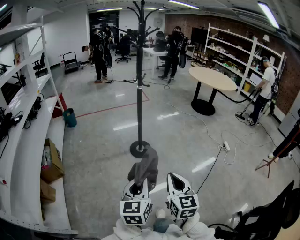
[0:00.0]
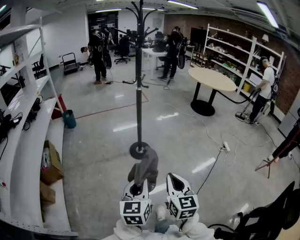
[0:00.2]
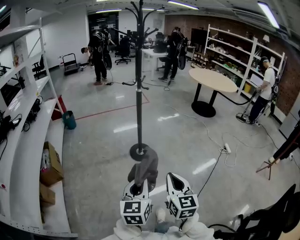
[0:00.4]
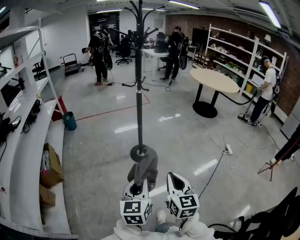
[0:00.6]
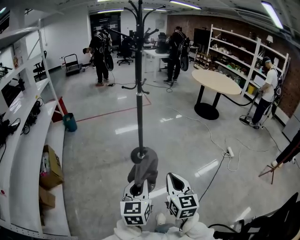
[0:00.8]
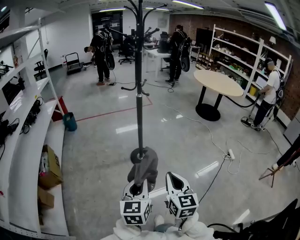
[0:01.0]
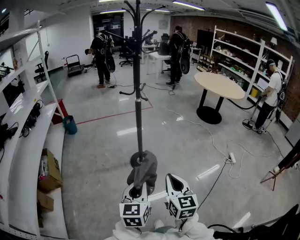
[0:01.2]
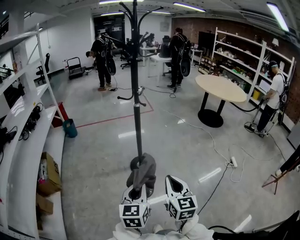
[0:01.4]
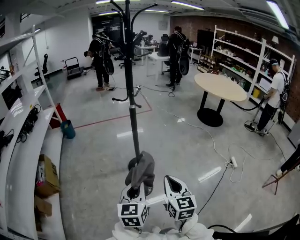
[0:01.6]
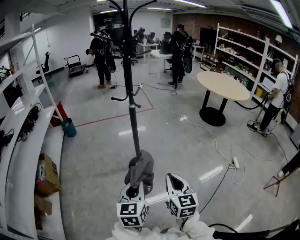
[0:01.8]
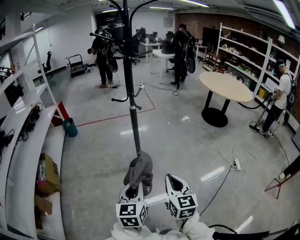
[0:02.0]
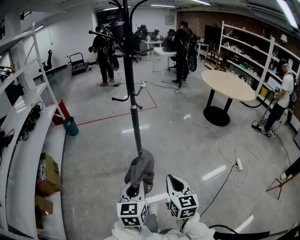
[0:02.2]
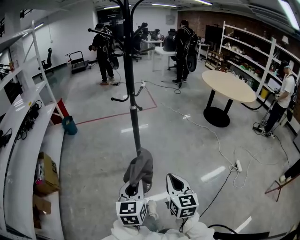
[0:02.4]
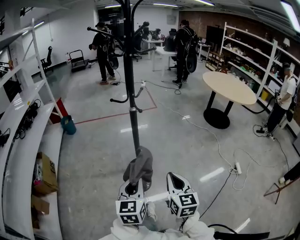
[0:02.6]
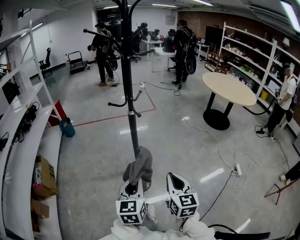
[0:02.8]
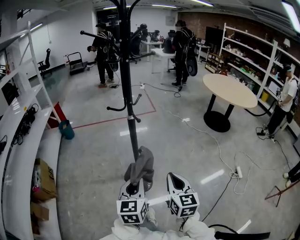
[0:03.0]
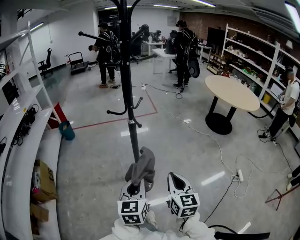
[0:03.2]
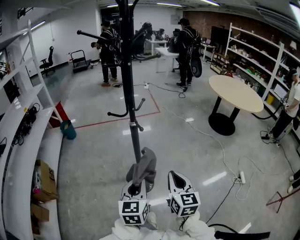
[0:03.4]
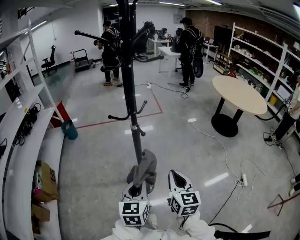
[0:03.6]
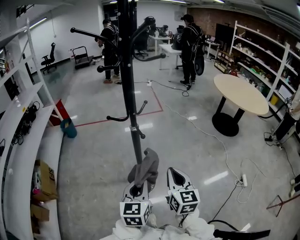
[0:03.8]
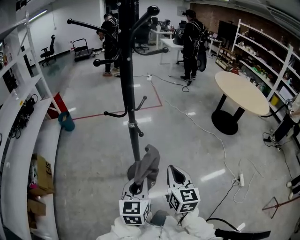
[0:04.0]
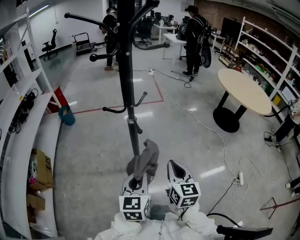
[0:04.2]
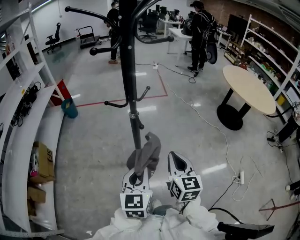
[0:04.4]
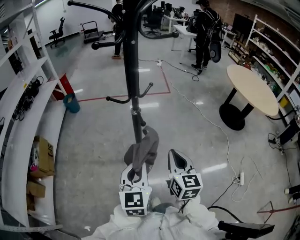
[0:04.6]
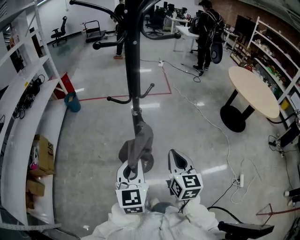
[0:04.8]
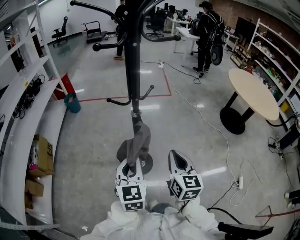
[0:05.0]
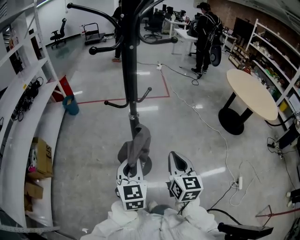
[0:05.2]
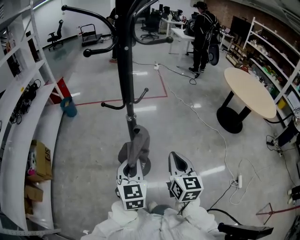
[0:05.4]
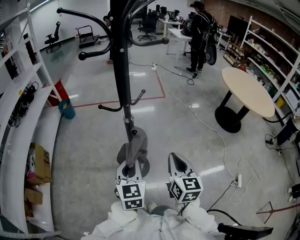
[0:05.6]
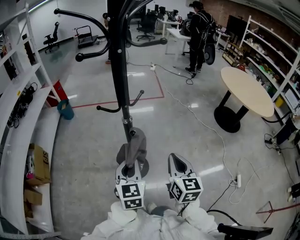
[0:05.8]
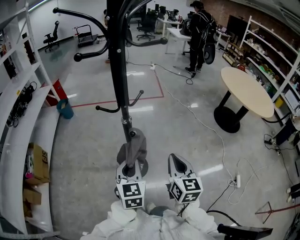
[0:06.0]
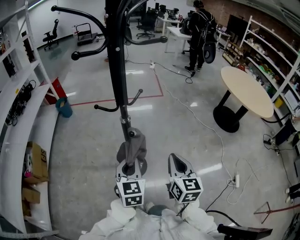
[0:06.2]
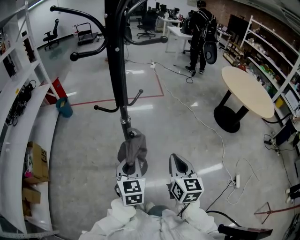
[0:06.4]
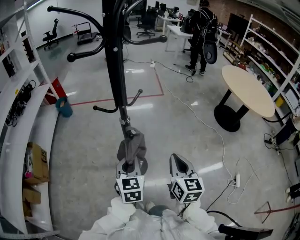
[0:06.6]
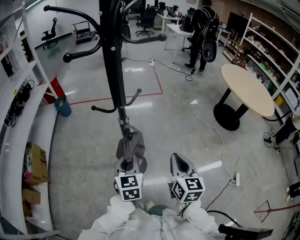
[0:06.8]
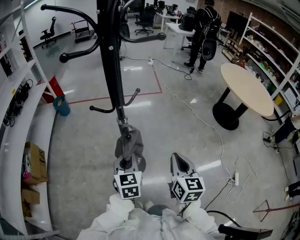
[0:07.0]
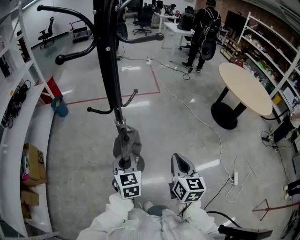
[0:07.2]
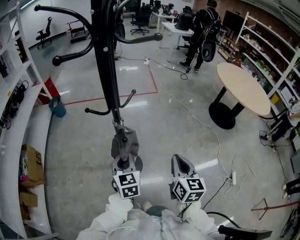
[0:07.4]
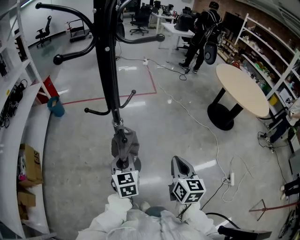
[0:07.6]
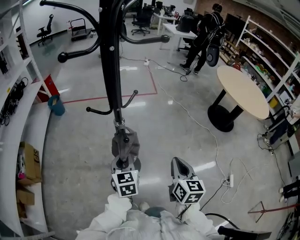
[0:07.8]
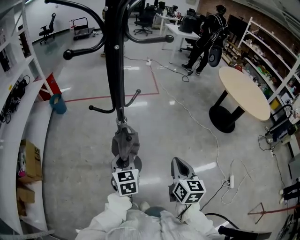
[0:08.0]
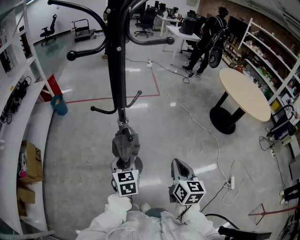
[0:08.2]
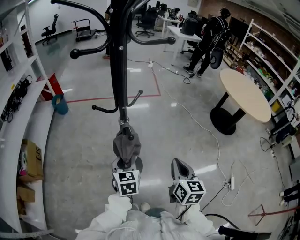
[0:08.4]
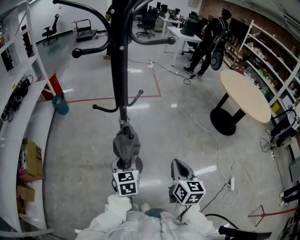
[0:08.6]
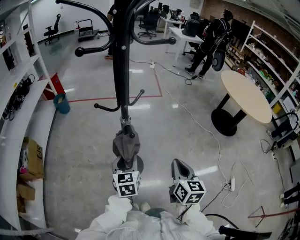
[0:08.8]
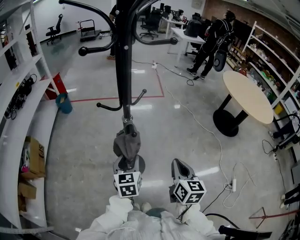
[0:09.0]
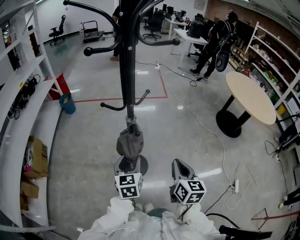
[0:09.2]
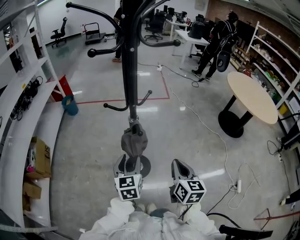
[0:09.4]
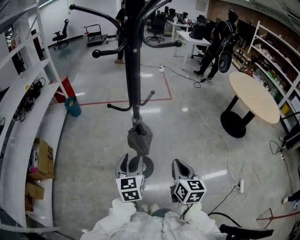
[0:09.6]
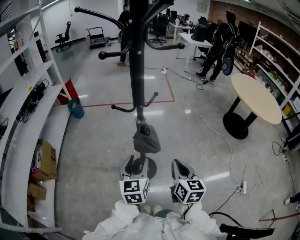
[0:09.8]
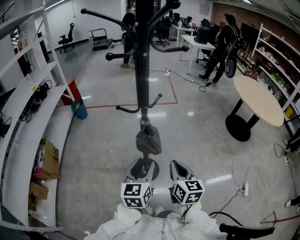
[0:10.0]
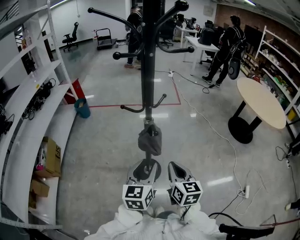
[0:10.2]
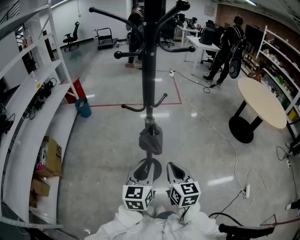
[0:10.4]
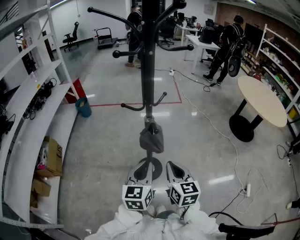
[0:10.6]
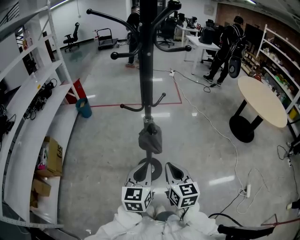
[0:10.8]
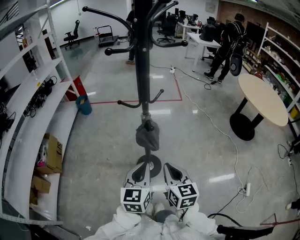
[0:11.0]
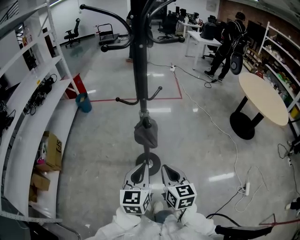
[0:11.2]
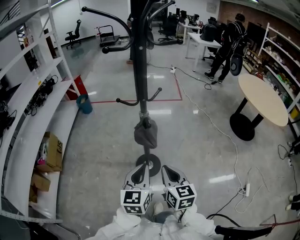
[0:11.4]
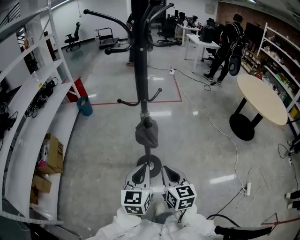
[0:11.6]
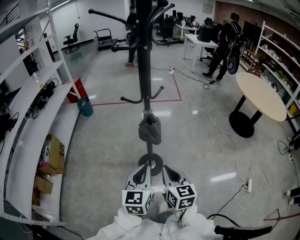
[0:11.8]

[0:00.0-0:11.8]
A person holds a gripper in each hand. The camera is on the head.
0.0 to 1.4 s: Both grippers move forward, about 15 cm.
1.4 to 3.0 s: The grippers both shift forward by approximately 20 cm.
3.0 to 4.4 s: The two grippers go roughly 15 cm forward.
4.4 to 6.0 s: The left gripper shifts roughly 5 cm forward.
6.0 to 7.4 s: The left gripper travels forward and downward by about 10 cm. Meanwhile the right gripper moves approximately 5 cm.
7.4 to 8.8 s: The left gripper opens.
8.8 to 10.4 s: The left gripper goes approximately 10 cm upward and backward; the right gripper moves to the left, about 10 cm.
10.4 to 11.8 s: Both grippers travel together backward, roughly 5 cm.

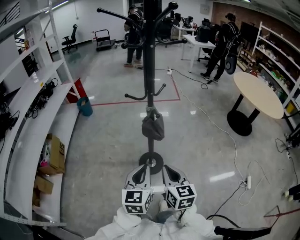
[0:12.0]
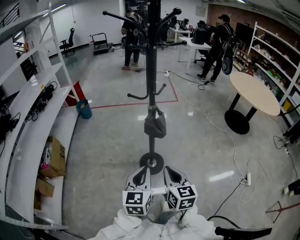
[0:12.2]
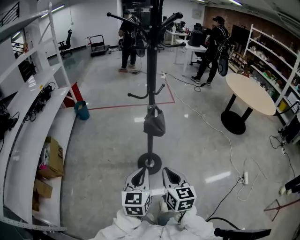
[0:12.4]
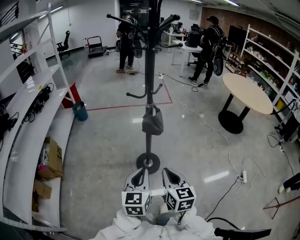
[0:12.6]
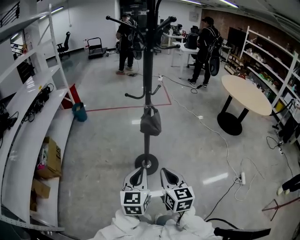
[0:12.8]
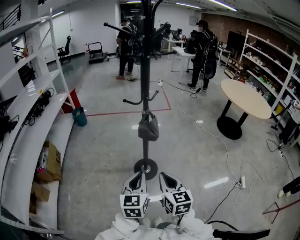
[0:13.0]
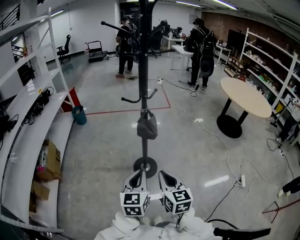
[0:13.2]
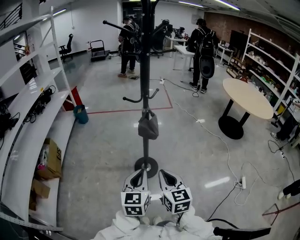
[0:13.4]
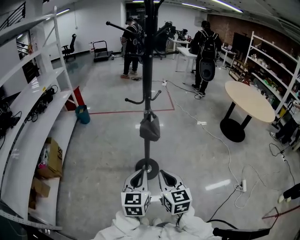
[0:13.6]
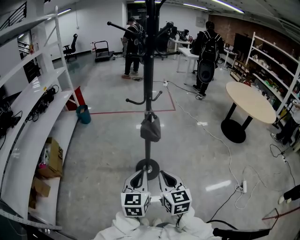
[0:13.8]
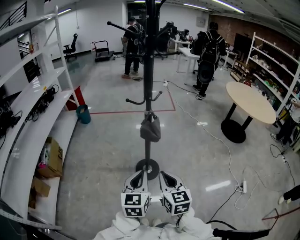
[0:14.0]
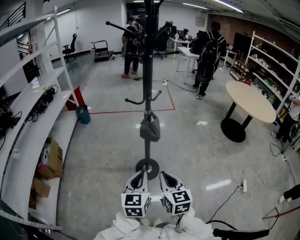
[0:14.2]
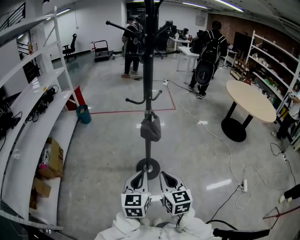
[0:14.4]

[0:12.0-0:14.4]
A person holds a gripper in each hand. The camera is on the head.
12.0 to 13.2 s: The two grippers go about 5 cm backward.
13.2 to 14.4 s: The grippers move only a little.

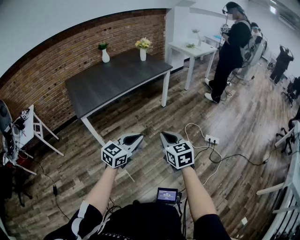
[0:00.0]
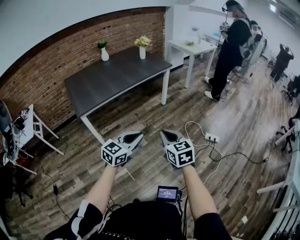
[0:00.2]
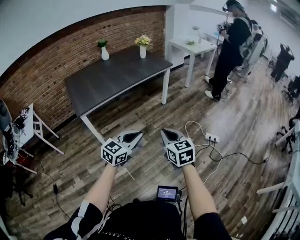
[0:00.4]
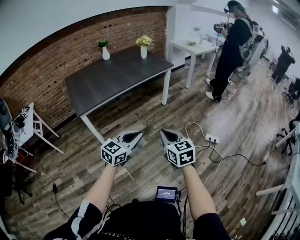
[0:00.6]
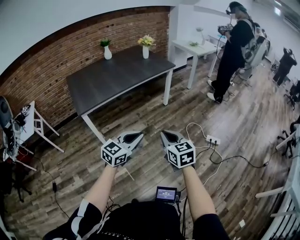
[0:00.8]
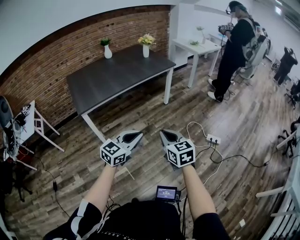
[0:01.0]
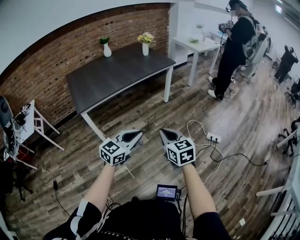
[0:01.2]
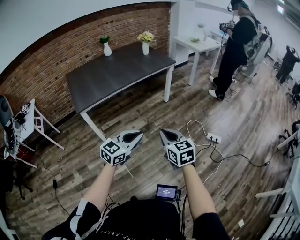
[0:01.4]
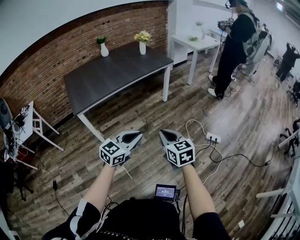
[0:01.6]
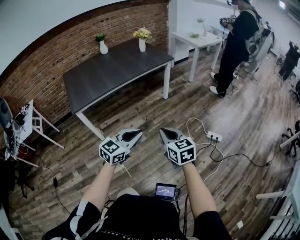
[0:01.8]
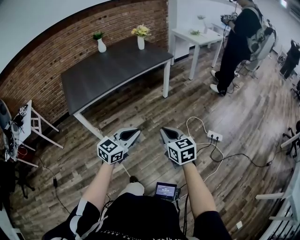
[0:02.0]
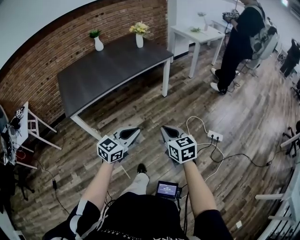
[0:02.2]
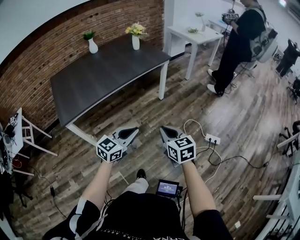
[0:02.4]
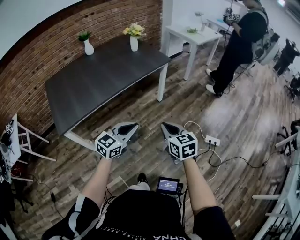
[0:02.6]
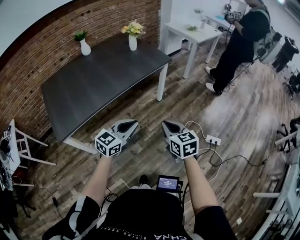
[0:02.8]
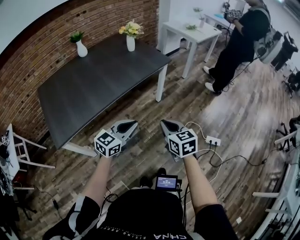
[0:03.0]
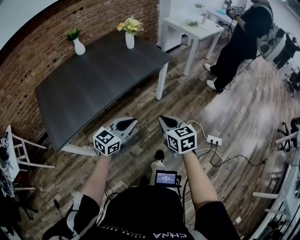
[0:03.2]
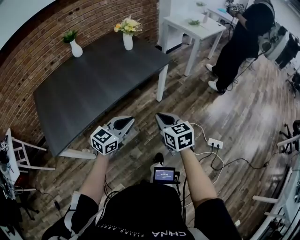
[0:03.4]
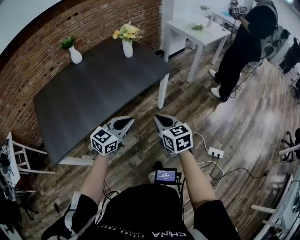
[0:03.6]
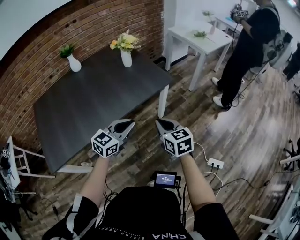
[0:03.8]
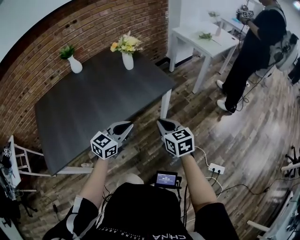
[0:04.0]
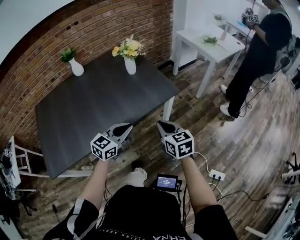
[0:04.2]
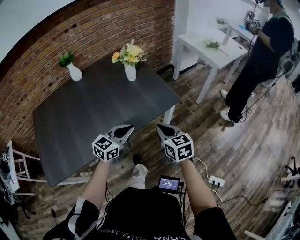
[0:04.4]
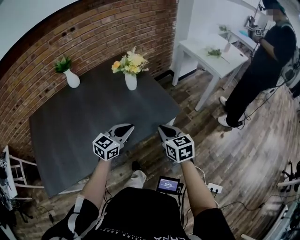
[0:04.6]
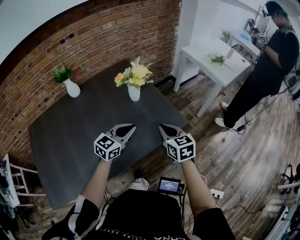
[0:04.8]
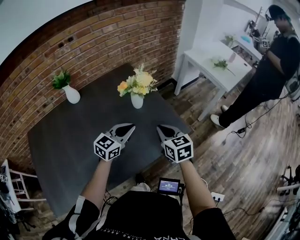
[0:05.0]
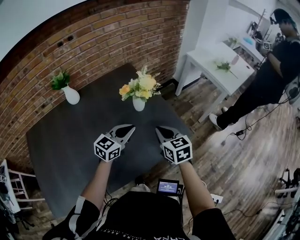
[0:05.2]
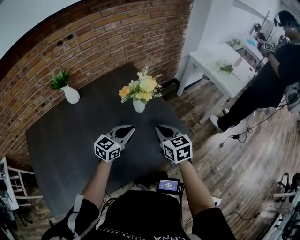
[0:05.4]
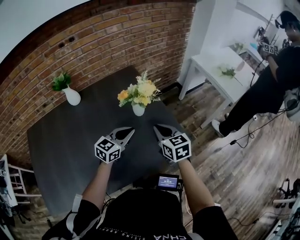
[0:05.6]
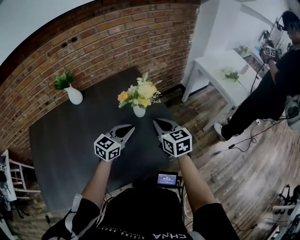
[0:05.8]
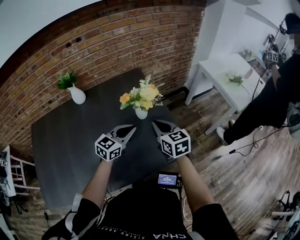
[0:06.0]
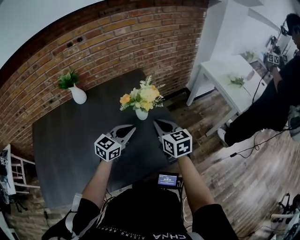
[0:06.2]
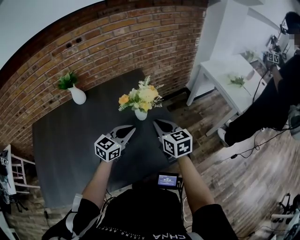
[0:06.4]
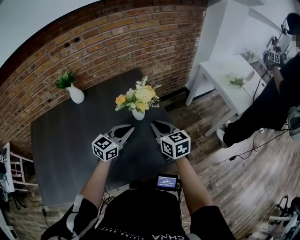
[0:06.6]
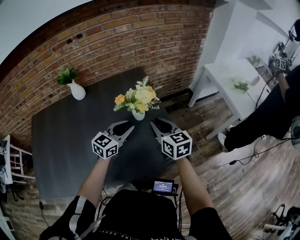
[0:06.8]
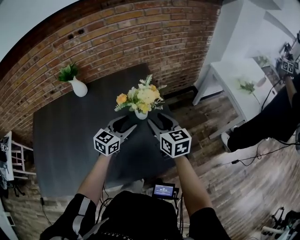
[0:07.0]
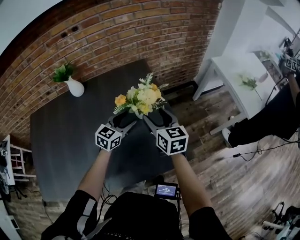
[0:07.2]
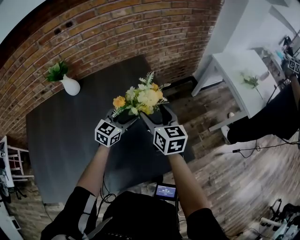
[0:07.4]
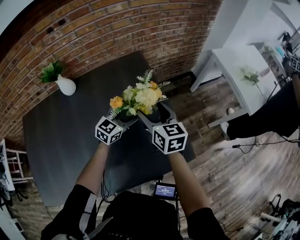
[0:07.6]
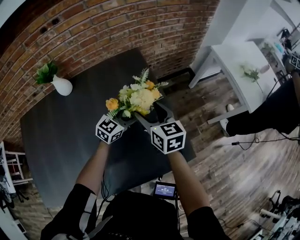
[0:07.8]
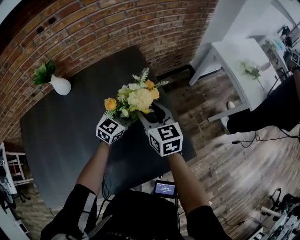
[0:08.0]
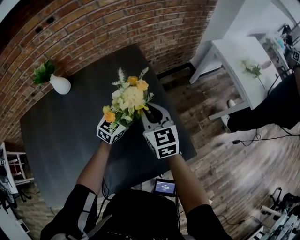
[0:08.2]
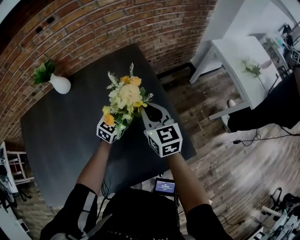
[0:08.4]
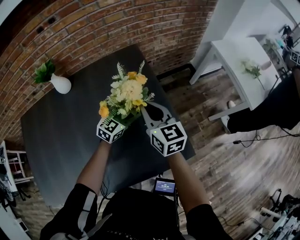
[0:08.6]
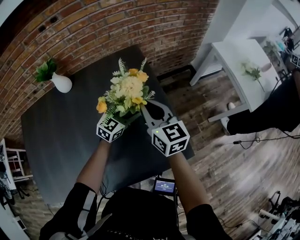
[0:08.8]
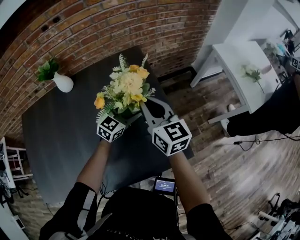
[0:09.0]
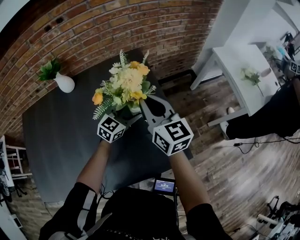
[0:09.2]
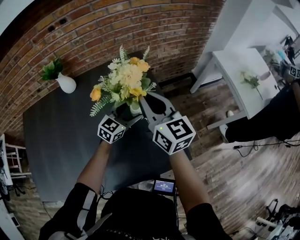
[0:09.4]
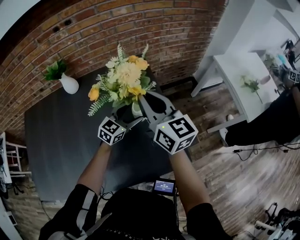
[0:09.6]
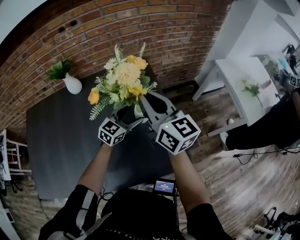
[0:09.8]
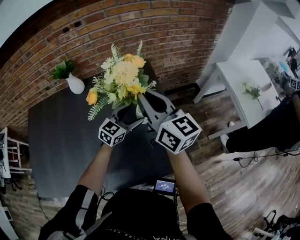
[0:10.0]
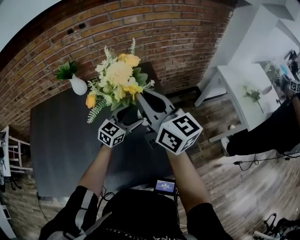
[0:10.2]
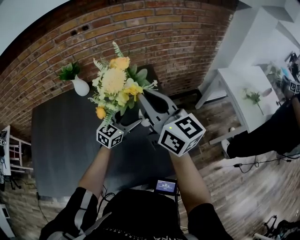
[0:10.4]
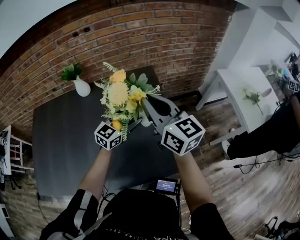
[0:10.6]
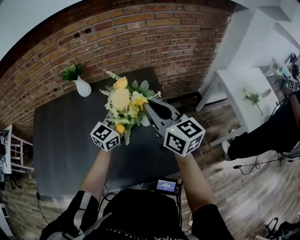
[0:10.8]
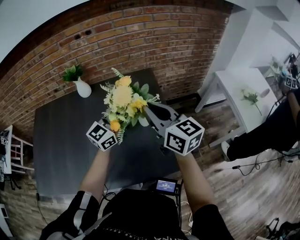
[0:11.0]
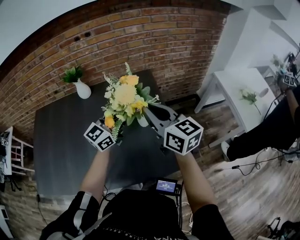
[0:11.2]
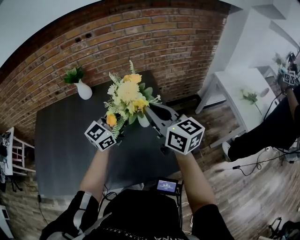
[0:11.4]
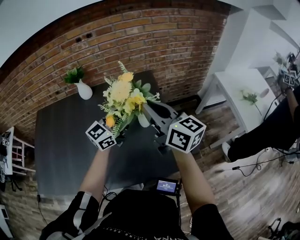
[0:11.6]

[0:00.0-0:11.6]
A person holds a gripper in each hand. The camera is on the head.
0.0 to 1.4 s: The grippers move only a little.
1.4 to 2.8 s: Both grippers travel together forward, roughly 35 cm.
2.8 to 4.4 s: Both grippers are carried forward, about 50 cm.
4.4 to 5.8 s: The grippers both shift forward by about 30 cm.
5.8 to 7.2 s: The right gripper moves forward, about 10 cm, and opens; the left gripper moves forward and downward, approximately 10 cm, and opens up.
7.2 to 8.8 s: The right gripper ends up some 5 cm from where it was, and closes. Meanwhile the left gripper travels forward by approximately 5 cm.
8.8 to 10.2 s: The right gripper travels upward by roughly 15 cm, and changes its angle by some 20 degrees, while the left gripper shifts about 5 cm upward.
10.2 to 11.6 s: The left gripper shifts roughly 15 cm upward and backward, changes its angle by approximately 20 degrees, and closes; the right gripper travels backward by approximately 5 cm.
